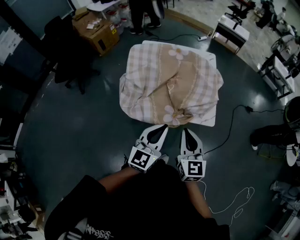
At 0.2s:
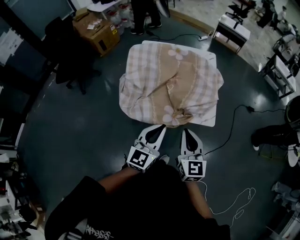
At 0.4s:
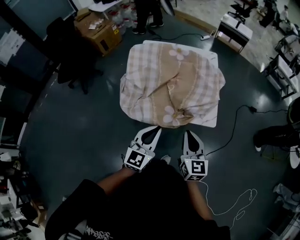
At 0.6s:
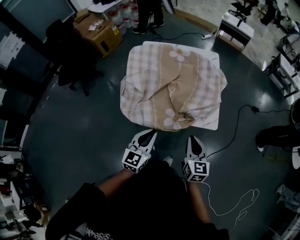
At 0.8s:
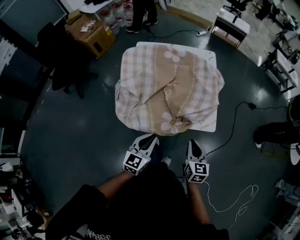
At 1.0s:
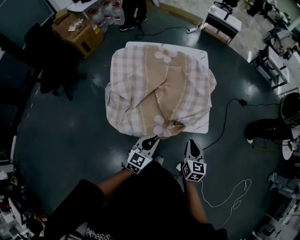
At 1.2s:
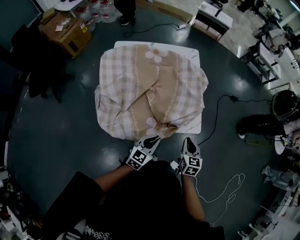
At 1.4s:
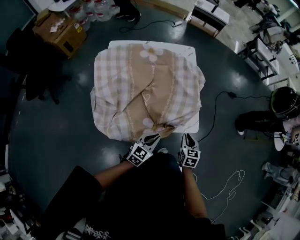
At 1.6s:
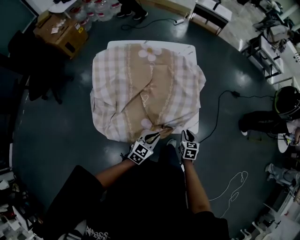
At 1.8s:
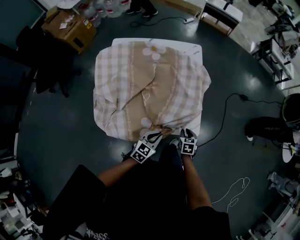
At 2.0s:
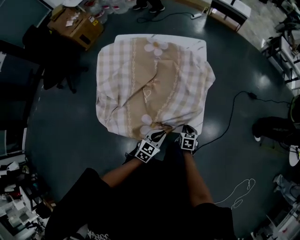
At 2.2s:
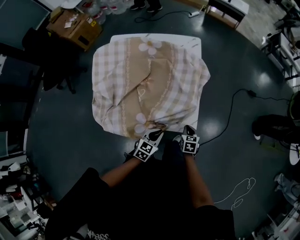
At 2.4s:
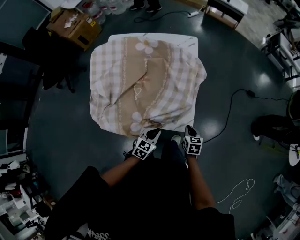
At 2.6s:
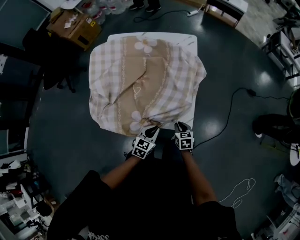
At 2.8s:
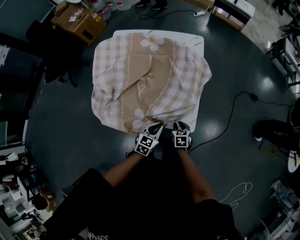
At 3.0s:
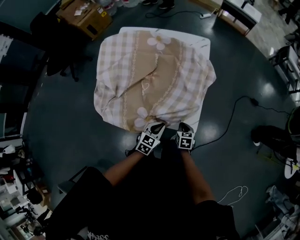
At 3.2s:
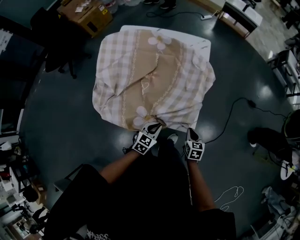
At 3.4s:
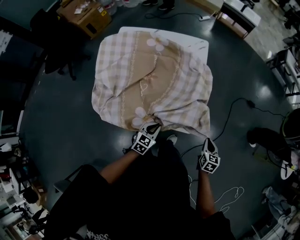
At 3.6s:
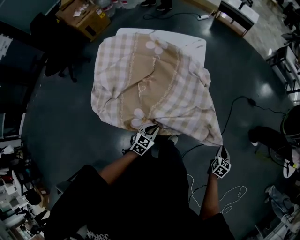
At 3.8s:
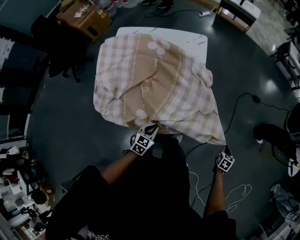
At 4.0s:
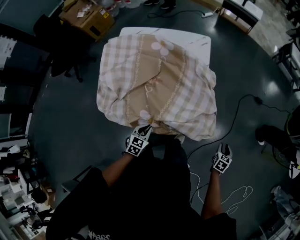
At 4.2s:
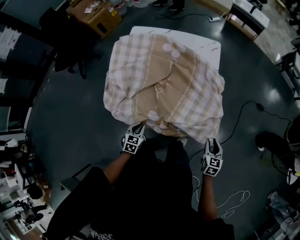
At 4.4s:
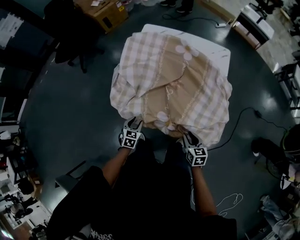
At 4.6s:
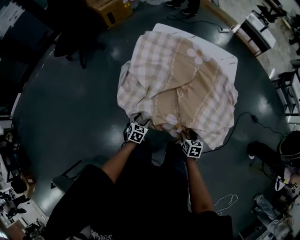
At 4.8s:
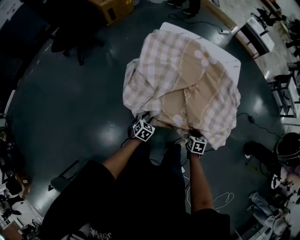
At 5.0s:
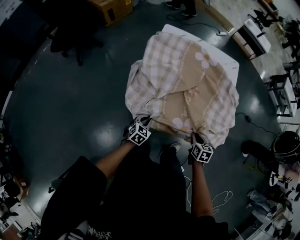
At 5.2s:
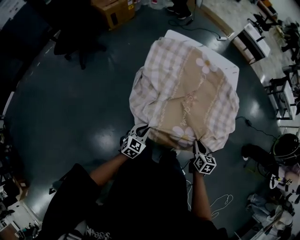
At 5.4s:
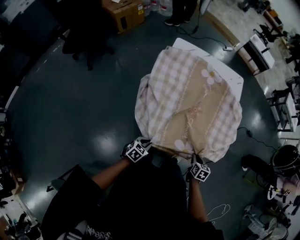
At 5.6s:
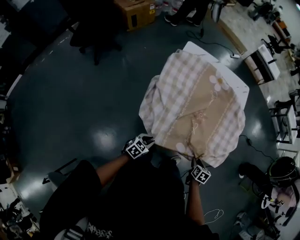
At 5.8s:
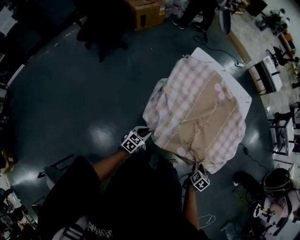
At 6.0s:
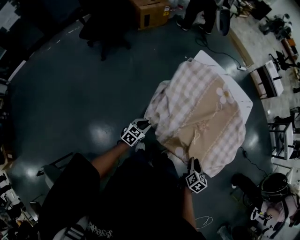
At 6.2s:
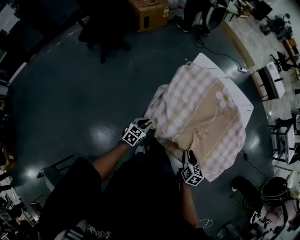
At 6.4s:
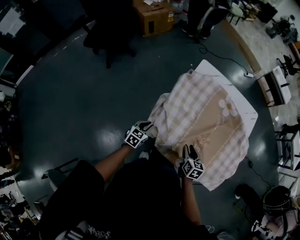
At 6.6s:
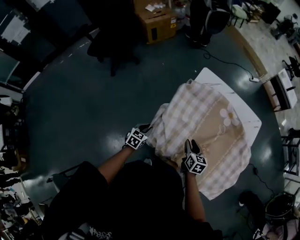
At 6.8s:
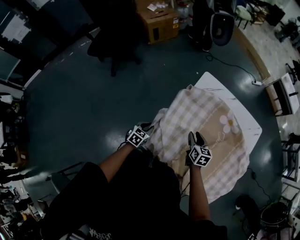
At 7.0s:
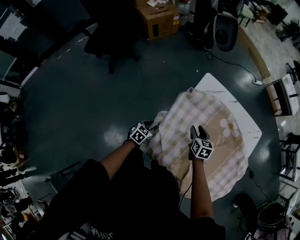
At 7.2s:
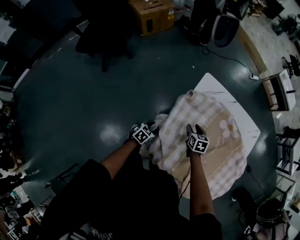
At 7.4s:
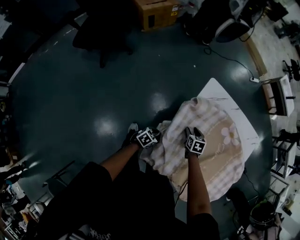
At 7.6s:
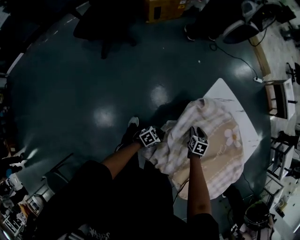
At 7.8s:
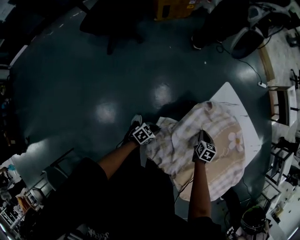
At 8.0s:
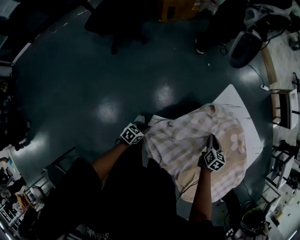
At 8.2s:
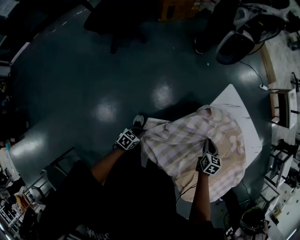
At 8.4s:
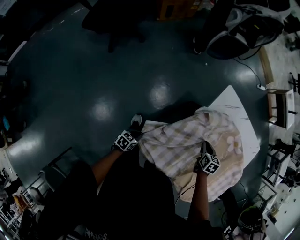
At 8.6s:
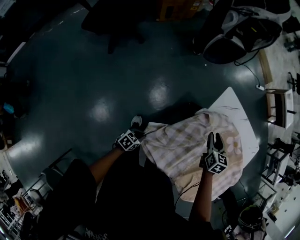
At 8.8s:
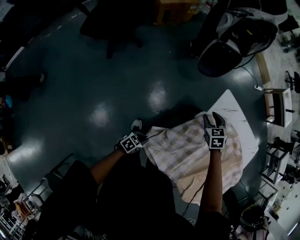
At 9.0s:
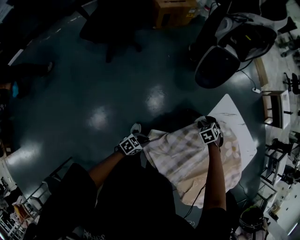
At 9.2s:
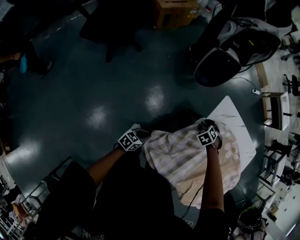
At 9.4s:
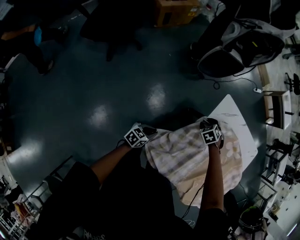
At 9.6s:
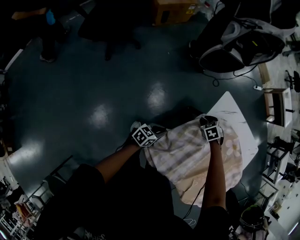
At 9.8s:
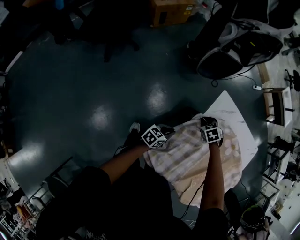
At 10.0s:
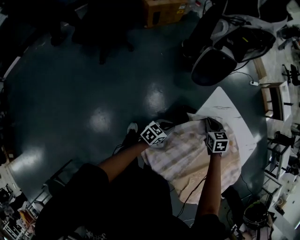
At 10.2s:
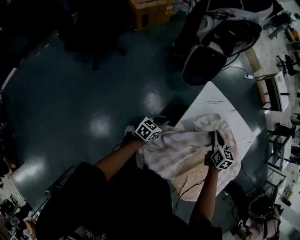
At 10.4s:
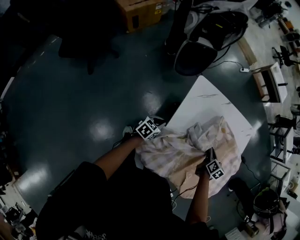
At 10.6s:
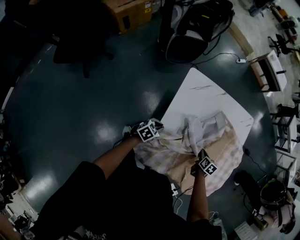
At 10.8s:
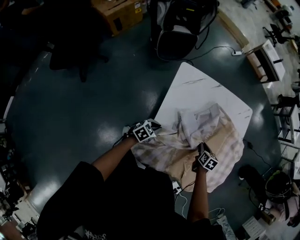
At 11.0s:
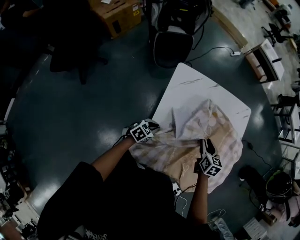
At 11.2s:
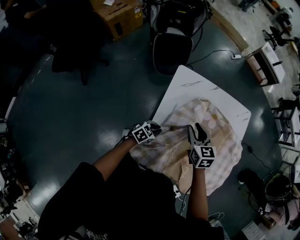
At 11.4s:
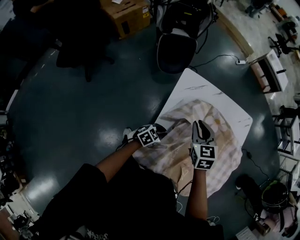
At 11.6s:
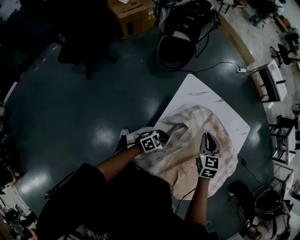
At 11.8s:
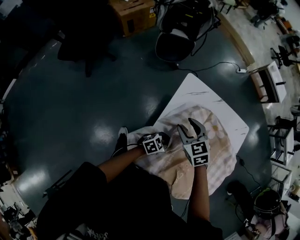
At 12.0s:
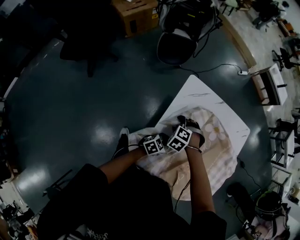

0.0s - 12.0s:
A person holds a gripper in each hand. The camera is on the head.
0.0s - 1.6s: The left gripper goes approximately 30 cm downward and forward, and turns by about 40 degrees; the right gripper travels downward, forward and to the right by roughly 40 cm, and points its fingers about 40 degrees further downward.
1.6s - 3.0s: The right gripper goes roughly 5 cm downward. The left gripper shifts roughly 10 cm to the right and downward.
3.0s - 4.4s: The left gripper moves some 25 cm, changes its angle by about 30 degrees, and opens its fingers. Meanwhile the right gripper goes up and down, about 10 cm each way, reversing 2 times, and opens its fingers.
4.4s - 6.0s: The right gripper swings up and down, about 15 cm each way, with 3 reversals, and rotates some 20 degrees, while the left gripper shifts by approximately 20 cm, and opens and closes again.
6.0s - 7.6s: The left gripper changes place by approximately 25 cm, changes its angle by about 30 degrees, and opens, then closes once more. The right gripper ends up approximately 50 cm from where it was, and changes its angle by approximately 30 degrees.
7.6s - 9.0s: The left gripper ends up approximately 15 cm from where it was, while the right gripper travels upward and back again, some 15 cm each way, rotates around the line of its fingers by roughly 50 degrees, counterclockwise from behind, and closes, then opens again.
9.0s - 10.4s: The left gripper moves some 25 cm. Meanwhile the right gripper moves roughly 15 cm upward and comes back, twists approximately 80 degrees clockwise, seen from behind, and closes its fingers.
10.4s - 12.0s: The left gripper shifts by roughly 20 cm. Meanwhile the right gripper swings up and down, roughly 25 cm each way, with 2 reversals, rolls counterclockwise, seen from behind, by approximately 100 degrees, and opens.

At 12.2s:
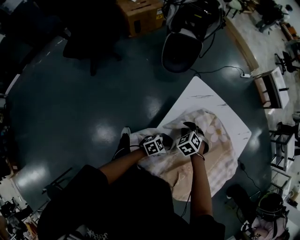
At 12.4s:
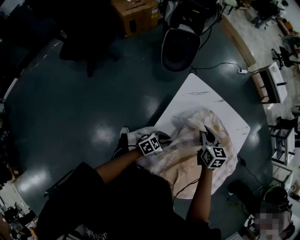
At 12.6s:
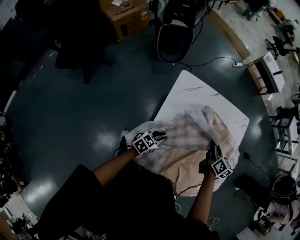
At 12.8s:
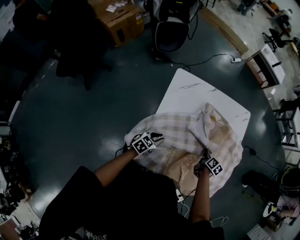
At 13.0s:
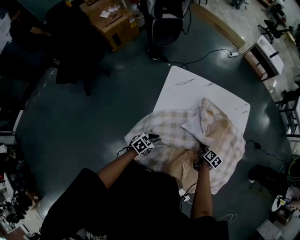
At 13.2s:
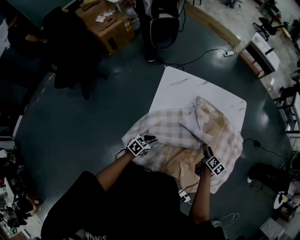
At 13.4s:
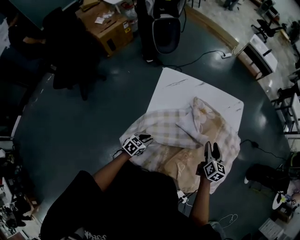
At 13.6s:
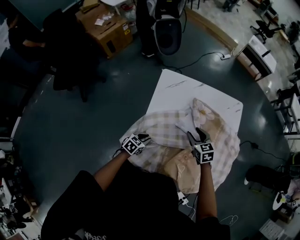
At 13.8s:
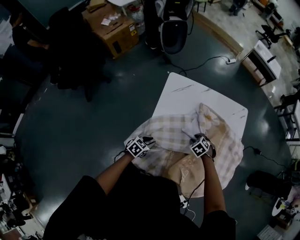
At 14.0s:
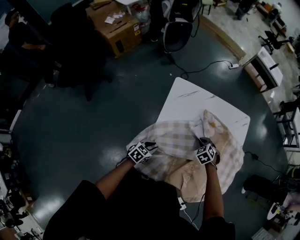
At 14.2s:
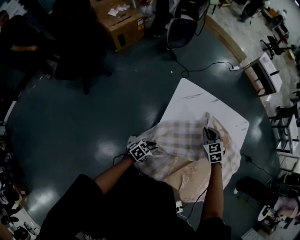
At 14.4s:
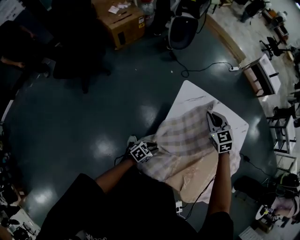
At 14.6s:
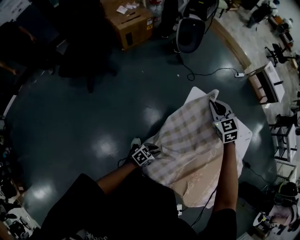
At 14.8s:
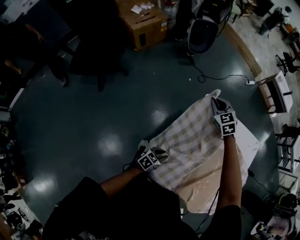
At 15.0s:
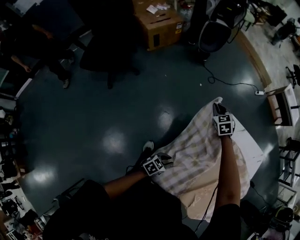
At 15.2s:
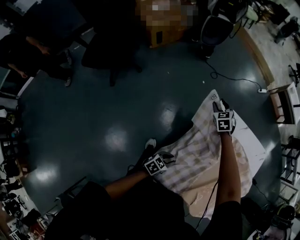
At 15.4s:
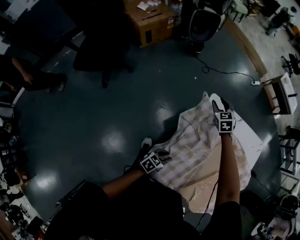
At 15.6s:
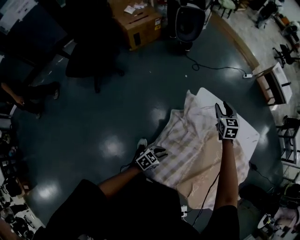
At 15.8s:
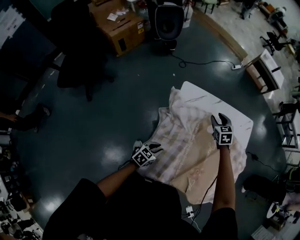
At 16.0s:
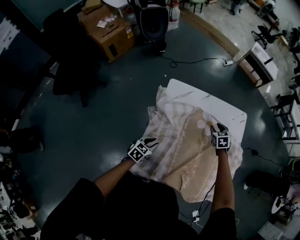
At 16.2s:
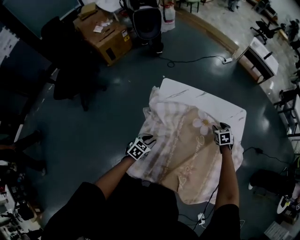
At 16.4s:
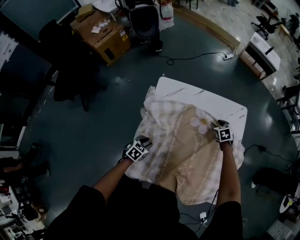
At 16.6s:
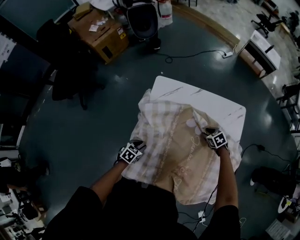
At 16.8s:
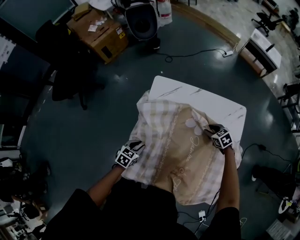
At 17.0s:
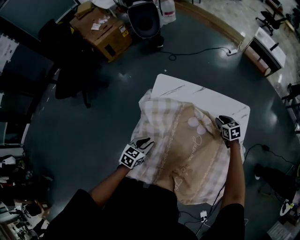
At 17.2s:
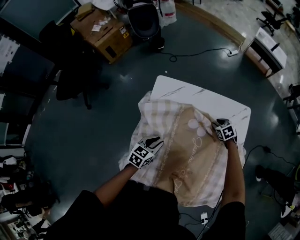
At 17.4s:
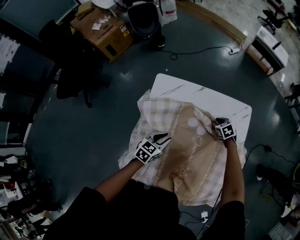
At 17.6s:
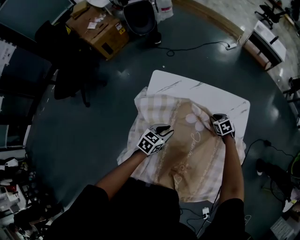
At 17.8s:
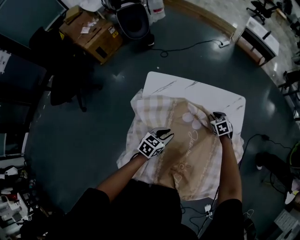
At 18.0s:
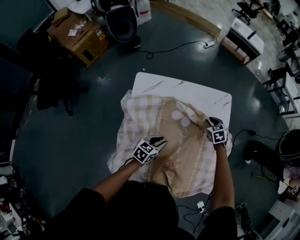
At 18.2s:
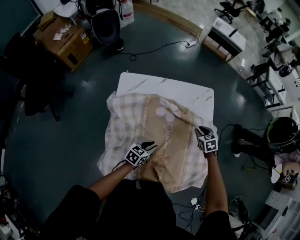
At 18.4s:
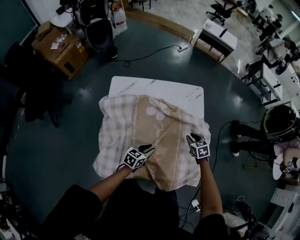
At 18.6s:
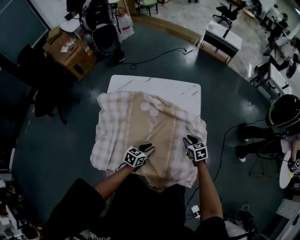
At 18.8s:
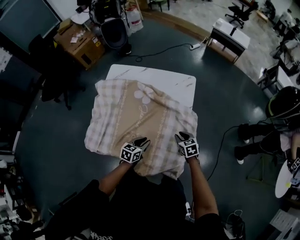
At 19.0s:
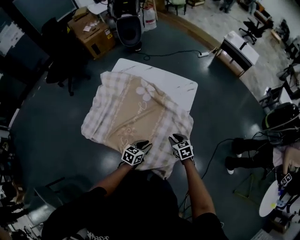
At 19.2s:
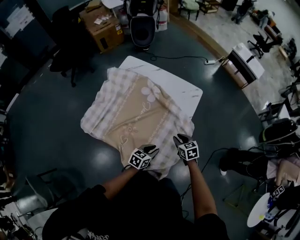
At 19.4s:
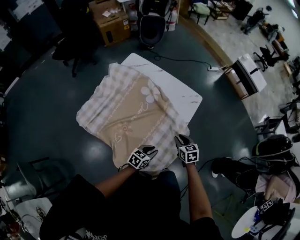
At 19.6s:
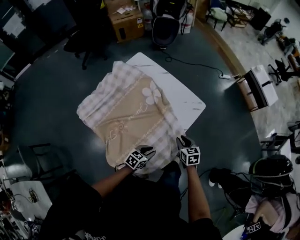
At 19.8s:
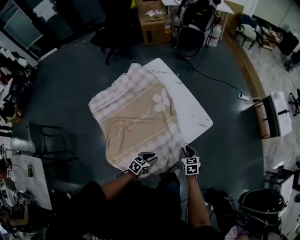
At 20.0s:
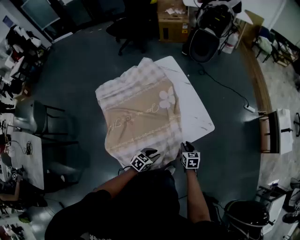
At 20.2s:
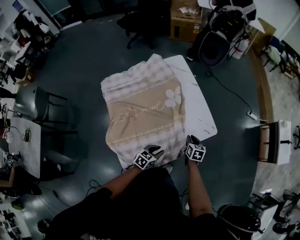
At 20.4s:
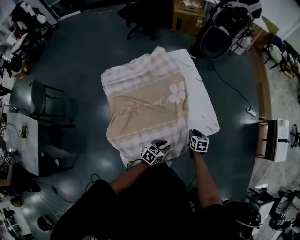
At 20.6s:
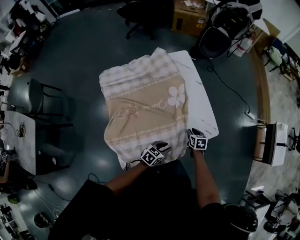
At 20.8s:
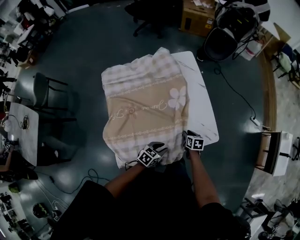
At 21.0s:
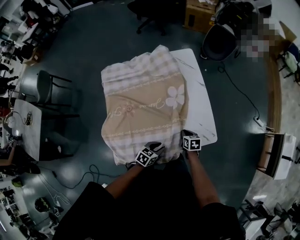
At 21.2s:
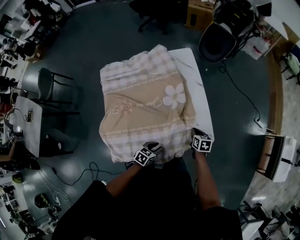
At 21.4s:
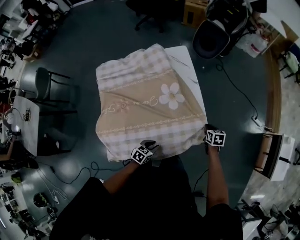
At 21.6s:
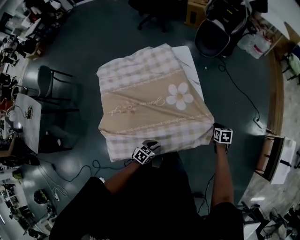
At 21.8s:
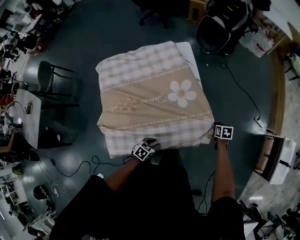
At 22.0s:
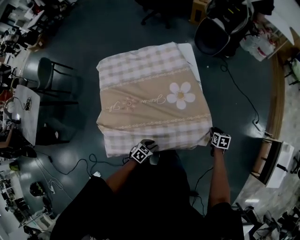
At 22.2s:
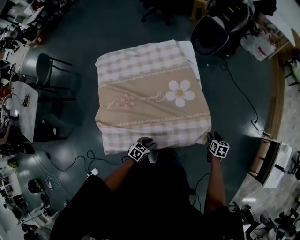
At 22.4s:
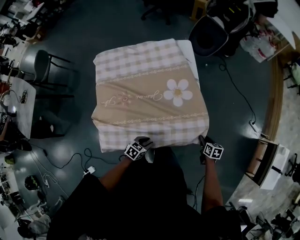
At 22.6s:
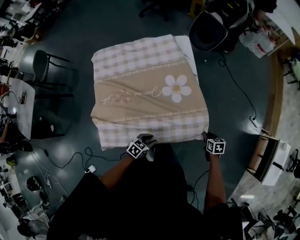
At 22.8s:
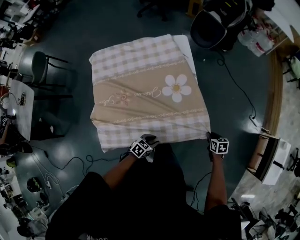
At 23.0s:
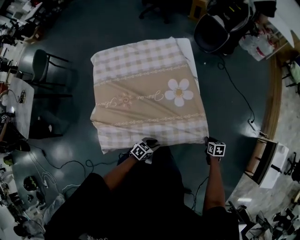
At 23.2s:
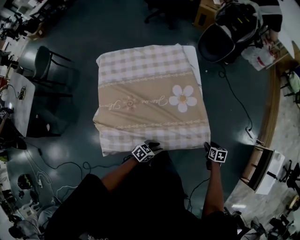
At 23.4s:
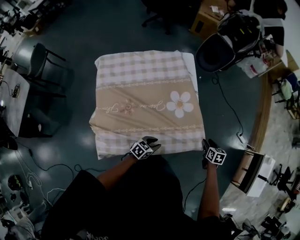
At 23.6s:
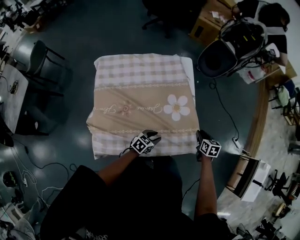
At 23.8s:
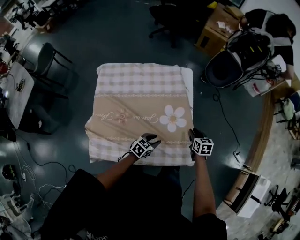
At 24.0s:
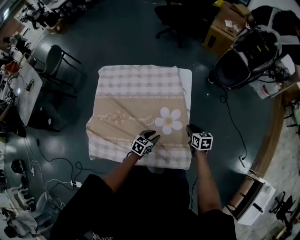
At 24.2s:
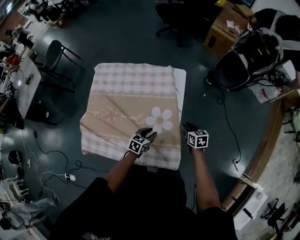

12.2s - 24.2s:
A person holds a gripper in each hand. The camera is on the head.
12.2s - 13.8s: The left gripper moves some 5 cm. The right gripper moves up and down over roughly 20 cm, changing direction 3 times, swivels some 20 degrees, and opens its fingers.
13.8s - 15.2s: The left gripper shifts by roughly 10 cm; the right gripper changes place by approximately 50 cm, changes its angle by about 30 degrees, and closes and opens again.
15.2s - 16.6s: The left gripper goes approximately 10 cm to the right and forward, and swivels roughly 20 degrees. Meanwhile the right gripper shifts approximately 50 cm to the right, and turns by roughly 30 degrees.
16.6s - 18.2s: The left gripper shifts by about 20 cm, and changes its angle by roughly 30 degrees. Meanwhile the right gripper goes up and down, roughly 10 cm each way, reversing 2 times, and turns by some 30 degrees.
18.2s - 19.8s: The left gripper moves some 40 cm, and turns by approximately 50 degrees; the right gripper changes place by approximately 20 cm, and swivels some 50 degrees.
19.8s - 21.2s: The right gripper shifts by some 20 cm, and closes up; the left gripper ends up roughly 10 cm from where it was, and turns by approximately 30 degrees.
21.2s - 22.6s: The right gripper moves to the right, roughly 15 cm, and opens and closes again.
22.6s - 24.2s: The left gripper moves some 30 cm, and turns by about 30 degrees. Meanwhile the right gripper changes place by roughly 30 cm, rotates roughly 30 degrees, and opens.
